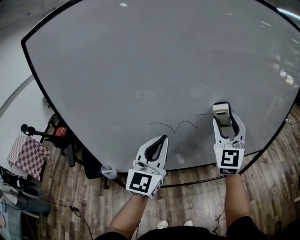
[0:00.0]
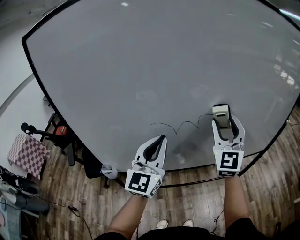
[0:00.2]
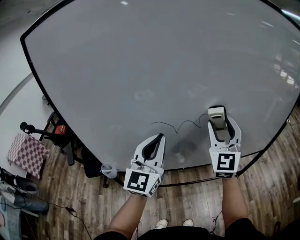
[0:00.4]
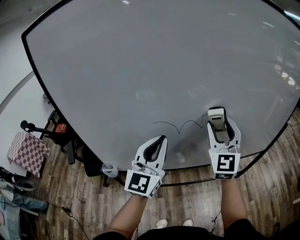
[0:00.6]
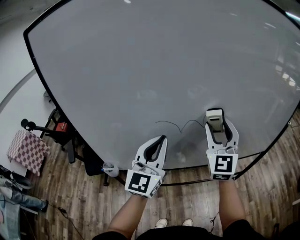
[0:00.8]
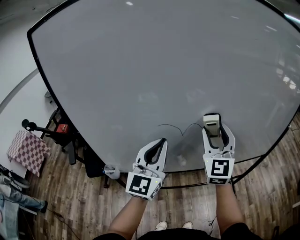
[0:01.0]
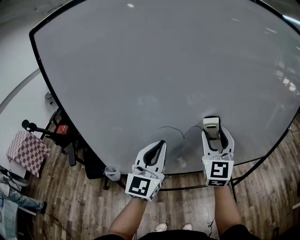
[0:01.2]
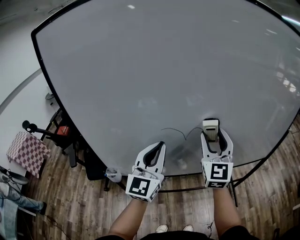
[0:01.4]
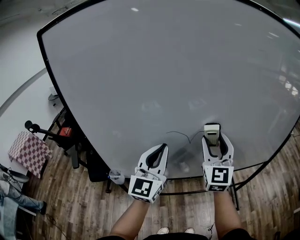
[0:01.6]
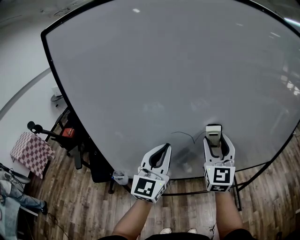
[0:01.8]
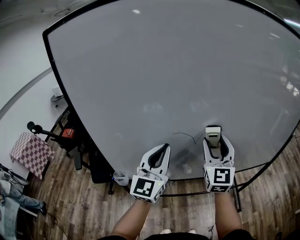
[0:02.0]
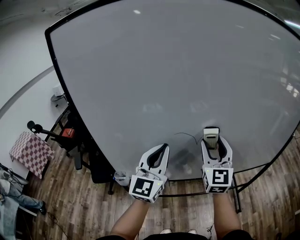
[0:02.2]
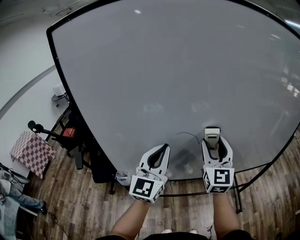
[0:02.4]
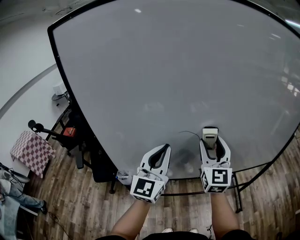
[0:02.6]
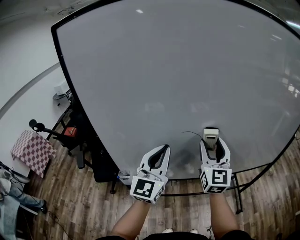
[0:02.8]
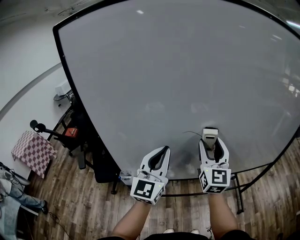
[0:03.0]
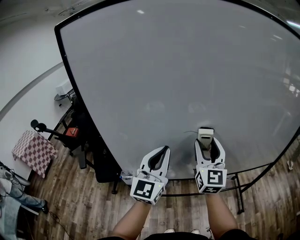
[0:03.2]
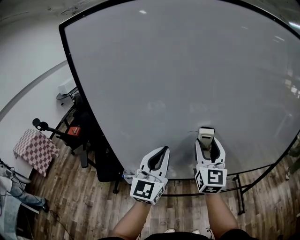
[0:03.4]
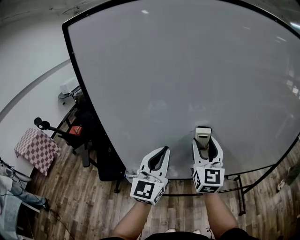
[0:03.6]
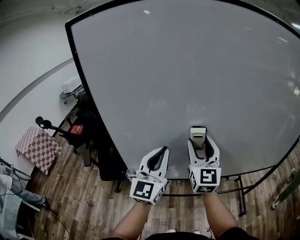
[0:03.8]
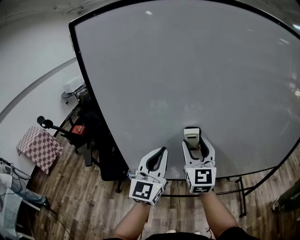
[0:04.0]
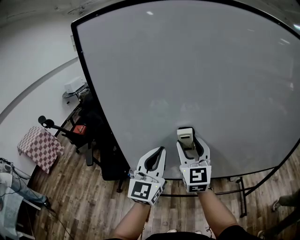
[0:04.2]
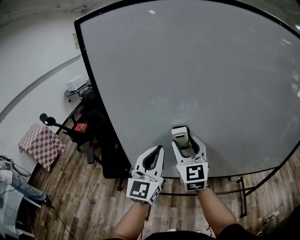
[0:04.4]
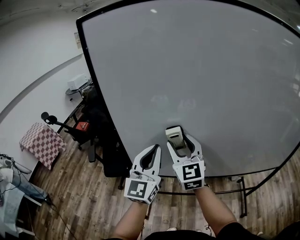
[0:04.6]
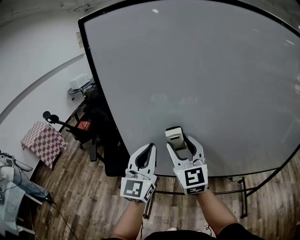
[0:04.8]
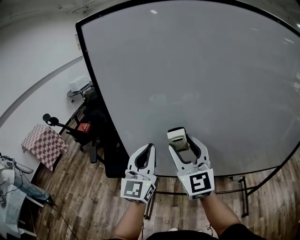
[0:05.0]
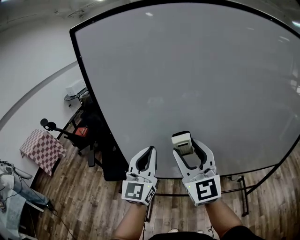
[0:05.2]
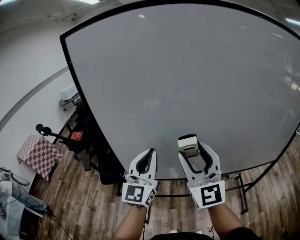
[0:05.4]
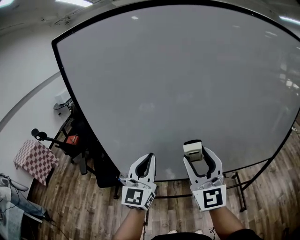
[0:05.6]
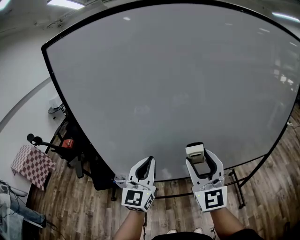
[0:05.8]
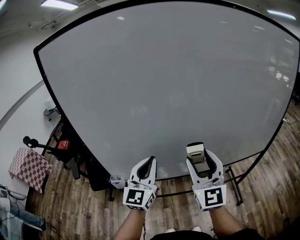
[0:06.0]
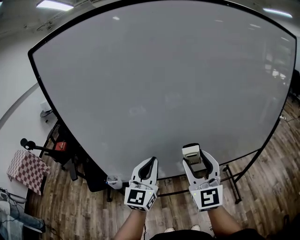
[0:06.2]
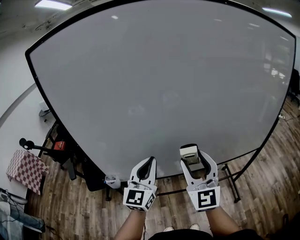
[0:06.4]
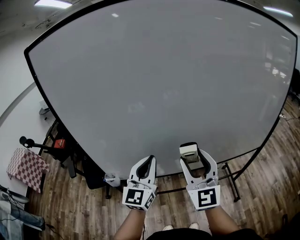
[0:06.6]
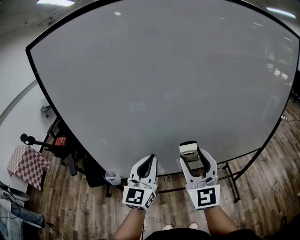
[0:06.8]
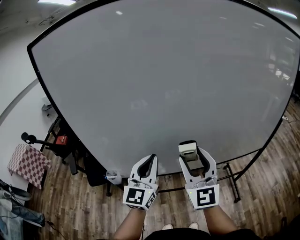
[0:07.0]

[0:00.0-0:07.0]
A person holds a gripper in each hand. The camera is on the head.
0:00.0 to 0:01.4: The two grippers go approximately 10 cm to the left.
0:01.4 to 0:02.8: The right gripper goes some 5 cm to the left.
0:02.8 to 0:04.2: The right gripper is displaced to the left by roughly 15 cm. Meanwhile the left gripper travels to the left by about 5 cm.
0:04.2 to 0:05.6: The right gripper heads backward and to the right, covering approximately 15 cm.
0:05.6 to 0:07.0: The two grippers go approximately 5 cm to the right.

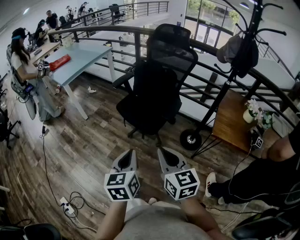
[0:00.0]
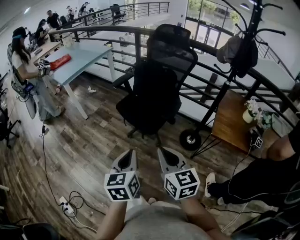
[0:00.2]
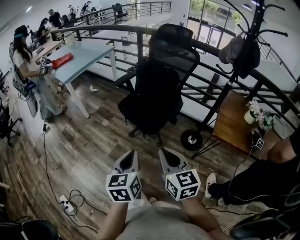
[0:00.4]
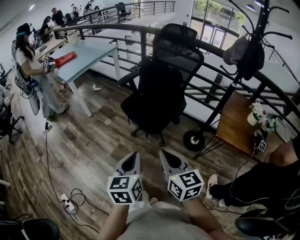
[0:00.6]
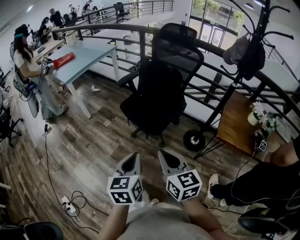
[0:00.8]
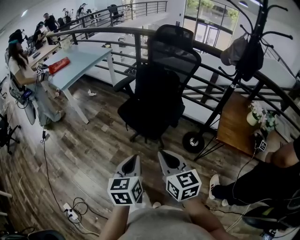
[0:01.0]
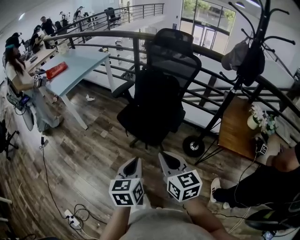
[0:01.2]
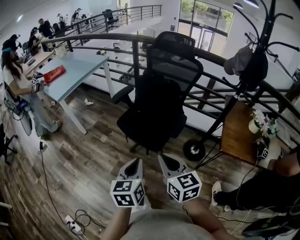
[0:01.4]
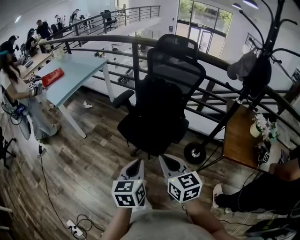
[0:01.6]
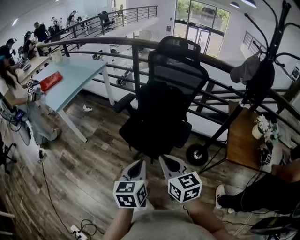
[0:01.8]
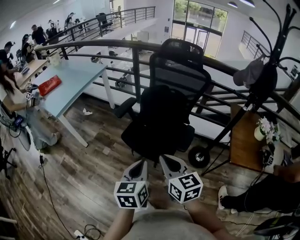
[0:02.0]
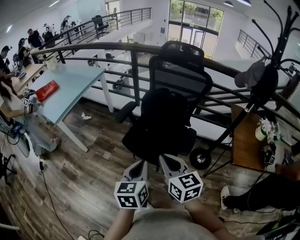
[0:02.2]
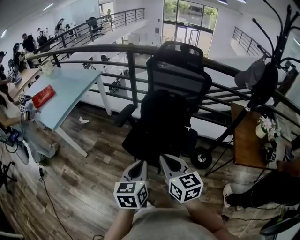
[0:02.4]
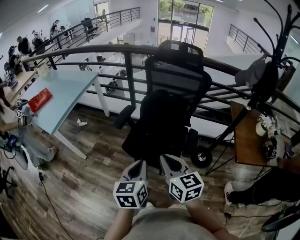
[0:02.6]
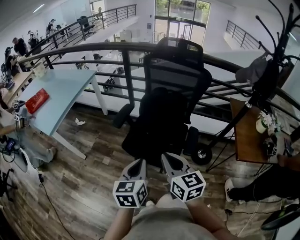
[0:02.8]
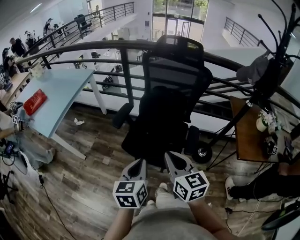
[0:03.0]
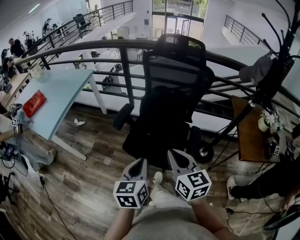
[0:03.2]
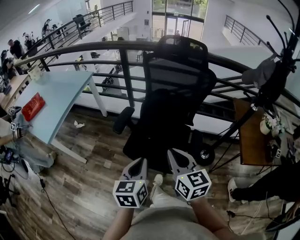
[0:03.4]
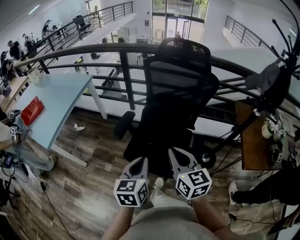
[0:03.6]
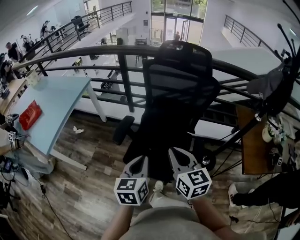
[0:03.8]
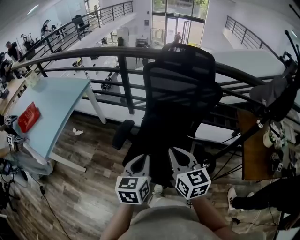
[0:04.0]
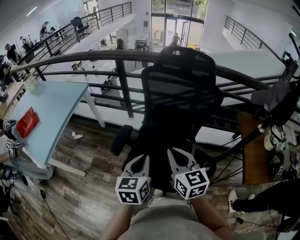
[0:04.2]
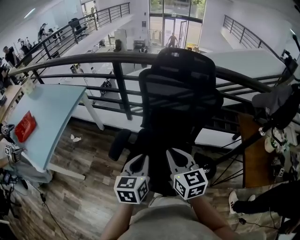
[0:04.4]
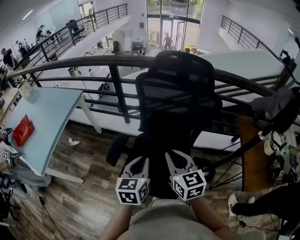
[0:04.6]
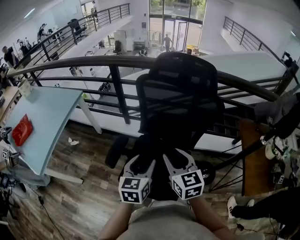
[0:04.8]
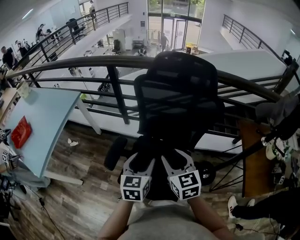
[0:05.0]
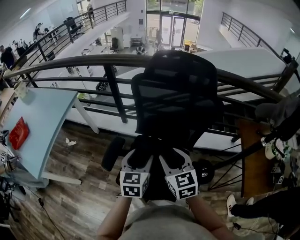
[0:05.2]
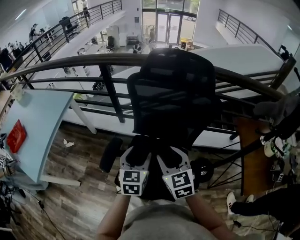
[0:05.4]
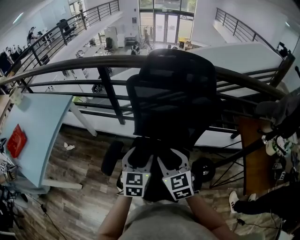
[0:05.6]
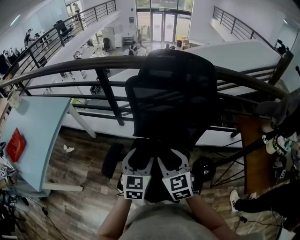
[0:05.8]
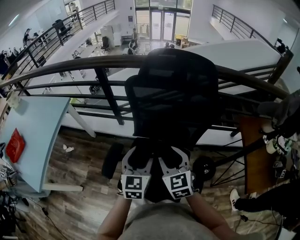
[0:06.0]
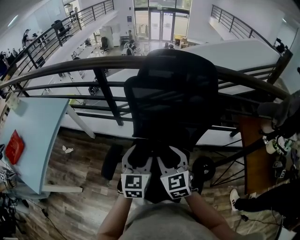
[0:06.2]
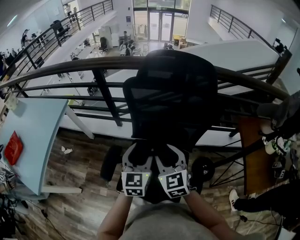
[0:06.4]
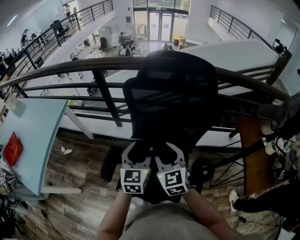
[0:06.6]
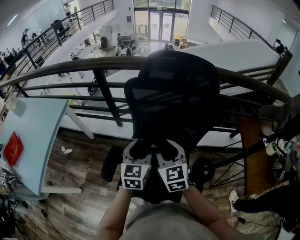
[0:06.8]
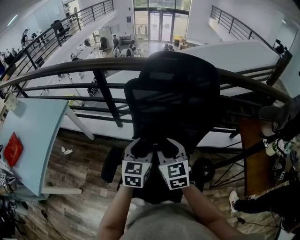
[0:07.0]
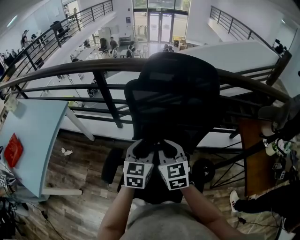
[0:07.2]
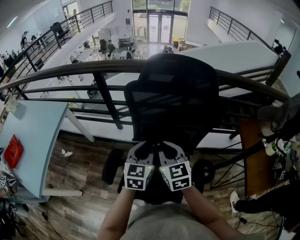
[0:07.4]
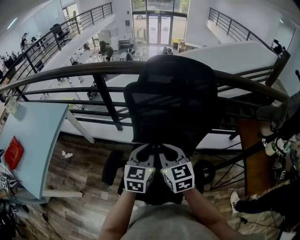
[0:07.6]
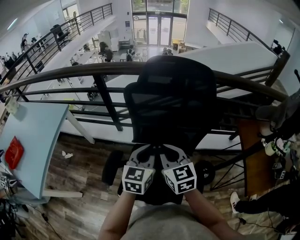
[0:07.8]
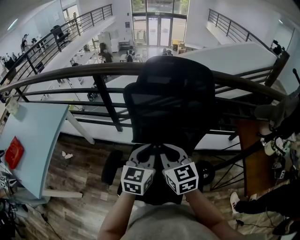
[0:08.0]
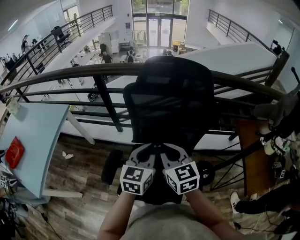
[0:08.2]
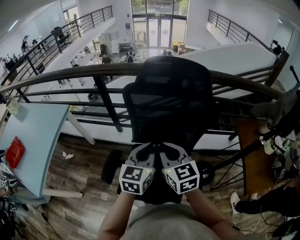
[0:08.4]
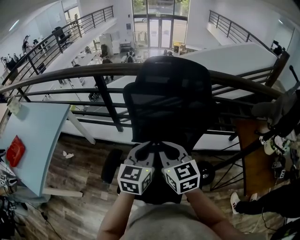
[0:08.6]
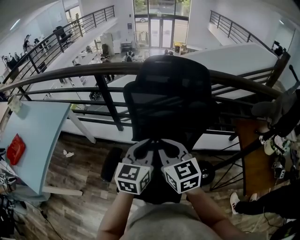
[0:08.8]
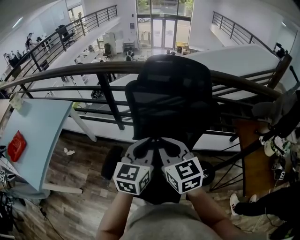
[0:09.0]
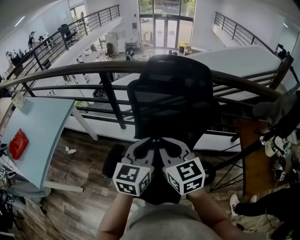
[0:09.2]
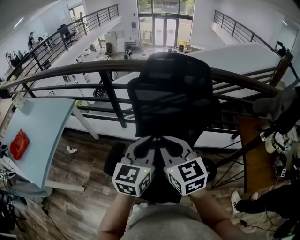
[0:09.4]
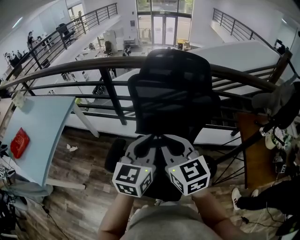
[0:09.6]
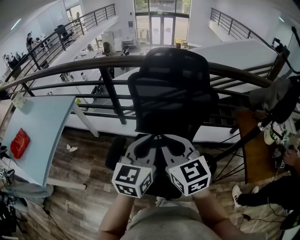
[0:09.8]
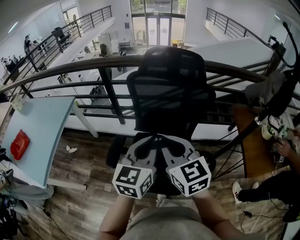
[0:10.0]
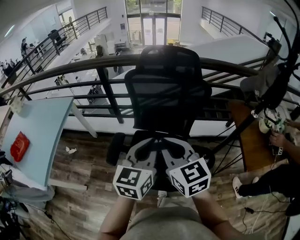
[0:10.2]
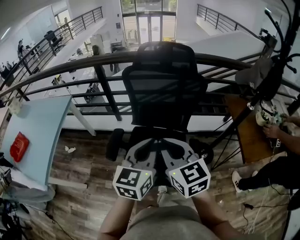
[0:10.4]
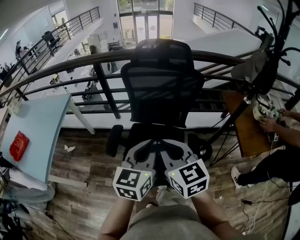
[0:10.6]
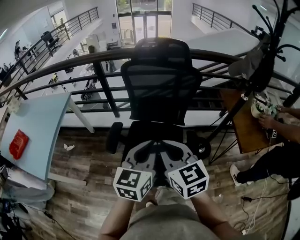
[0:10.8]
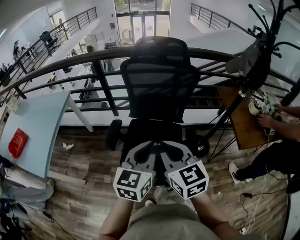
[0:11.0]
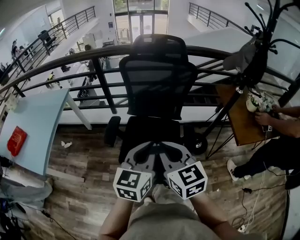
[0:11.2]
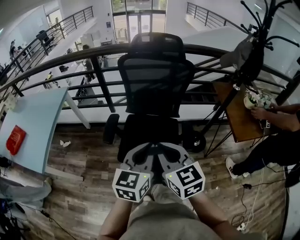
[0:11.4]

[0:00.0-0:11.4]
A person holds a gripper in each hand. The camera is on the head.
0:00.0 to 0:01.4: Both grippers move forward, approximately 10 cm.
0:01.4 to 0:02.8: The grippers both shift forward and to the left by about 25 cm.
0:02.8 to 0:04.2: The two grippers go about 20 cm forward.
0:04.2 to 0:05.6: The right gripper shifts some 15 cm forward and downward, and opens up; the left gripper moves forward, roughly 15 cm, and opens up.
0:05.6 to 0:07.2: The grippers both shift forward by roughly 10 cm. The right gripper closes up.
0:07.2 to 0:08.6: The two grippers go approximately 5 cm upward. The left gripper closes up.
0:08.6 to 0:10.0: The grippers both shift backward and upward by approximately 15 cm.
0:10.0 to 0:11.4: Both grippers move backward, about 20 cm.

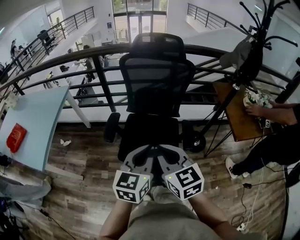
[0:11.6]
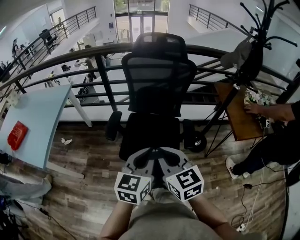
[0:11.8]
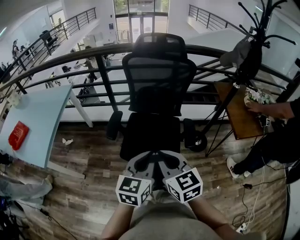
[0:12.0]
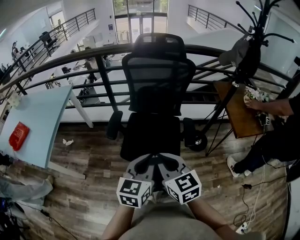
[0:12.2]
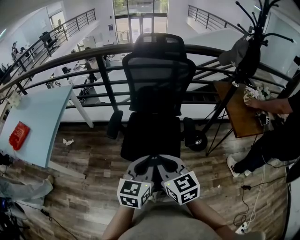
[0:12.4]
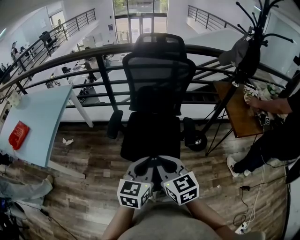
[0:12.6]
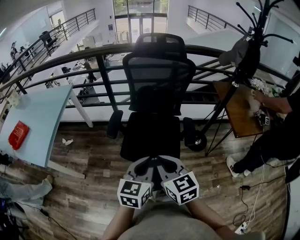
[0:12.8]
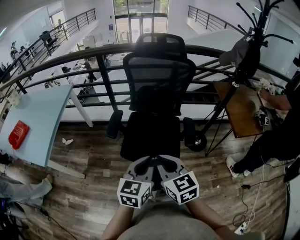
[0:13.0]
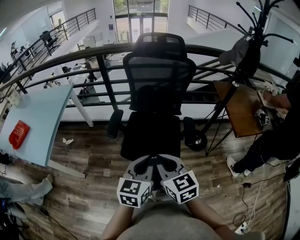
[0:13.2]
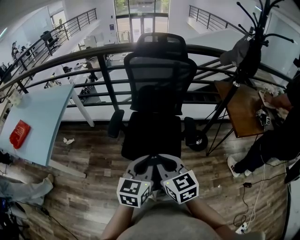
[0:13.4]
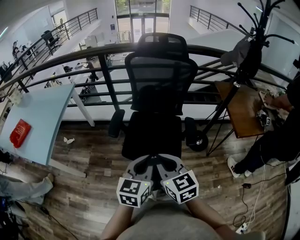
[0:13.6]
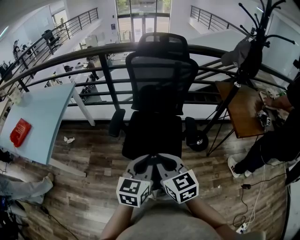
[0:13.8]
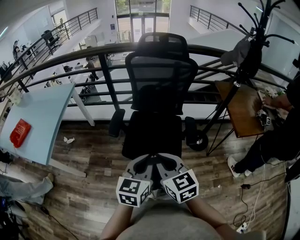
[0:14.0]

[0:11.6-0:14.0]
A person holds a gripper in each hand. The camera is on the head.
0:11.6 to 0:12.8: Both grippers move backward and downward, some 10 cm.
0:12.8 to 0:14.0: Both grippers stay put.

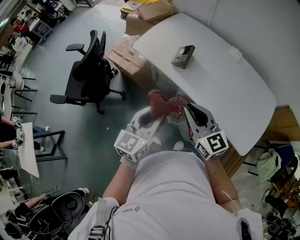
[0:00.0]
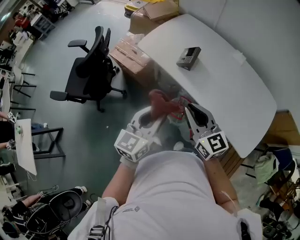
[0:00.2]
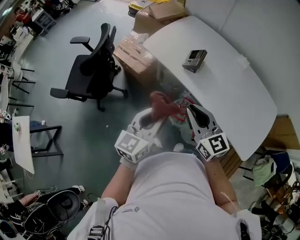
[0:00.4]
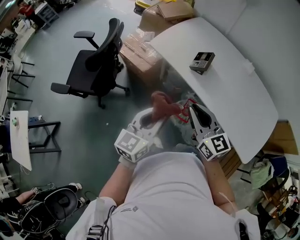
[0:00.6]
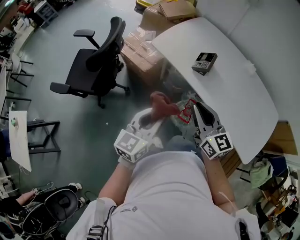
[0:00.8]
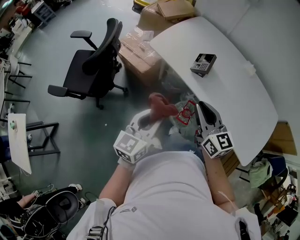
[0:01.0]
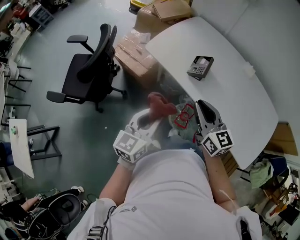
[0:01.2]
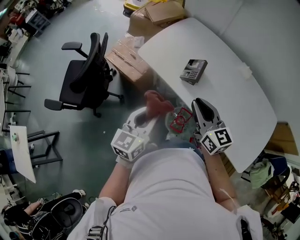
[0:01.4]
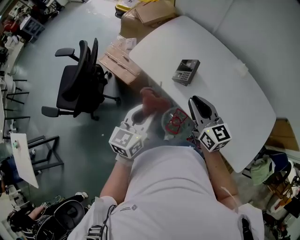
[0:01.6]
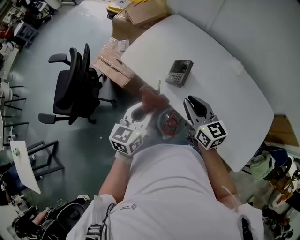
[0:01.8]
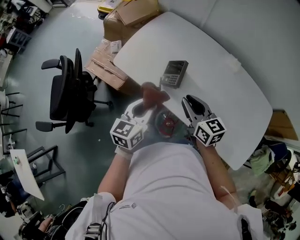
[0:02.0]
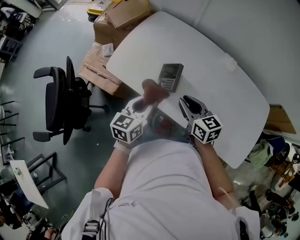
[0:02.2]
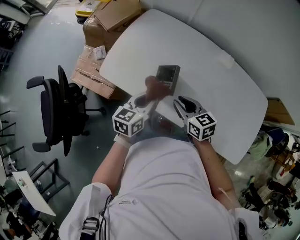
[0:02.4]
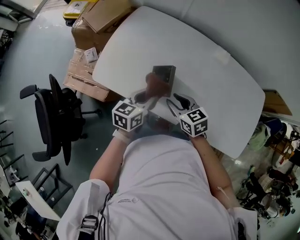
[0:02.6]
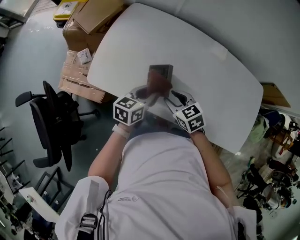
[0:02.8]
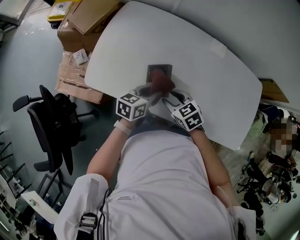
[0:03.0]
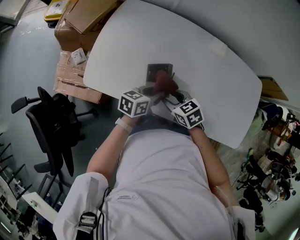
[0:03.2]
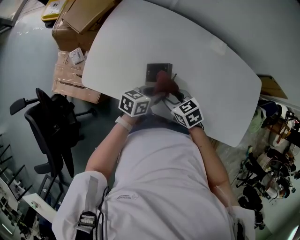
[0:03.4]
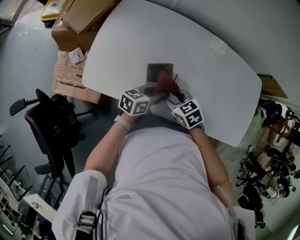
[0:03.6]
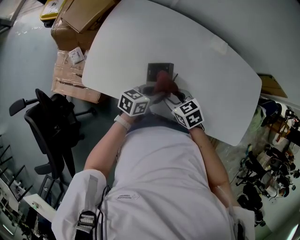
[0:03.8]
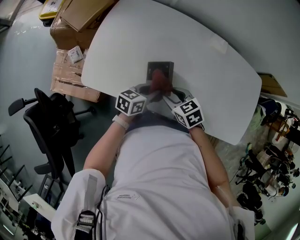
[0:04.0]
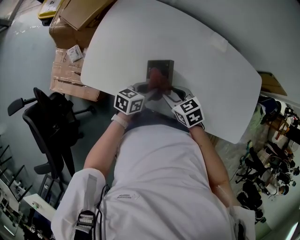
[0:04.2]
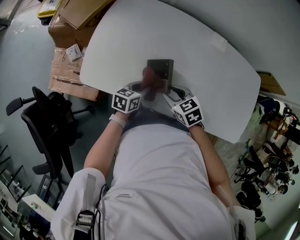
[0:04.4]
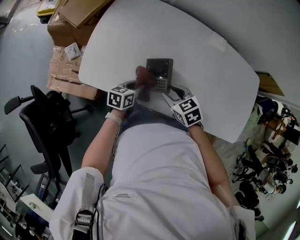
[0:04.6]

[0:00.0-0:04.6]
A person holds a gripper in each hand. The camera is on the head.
0:00.0 to 0:01.6: Both grippers move forward, about 15 cm.
0:01.6 to 0:03.0: The left gripper shifts some 30 cm forward, downward and to the right, and turns by some 40 degrees. Meanwhile the right gripper heads downward and forward, covering approximately 25 cm, points its fingers some 40 degrees further downward, and opens.
0:03.0 to 0:04.6: The left gripper goes about 10 cm downward and to the left.
